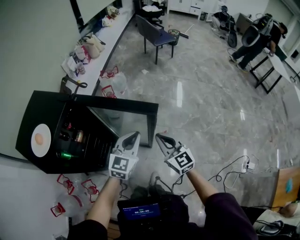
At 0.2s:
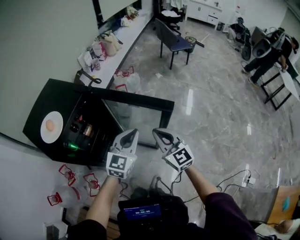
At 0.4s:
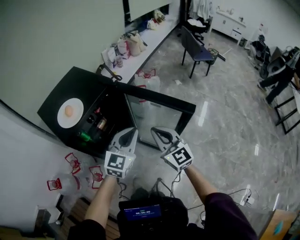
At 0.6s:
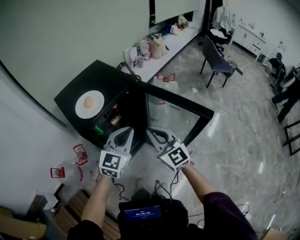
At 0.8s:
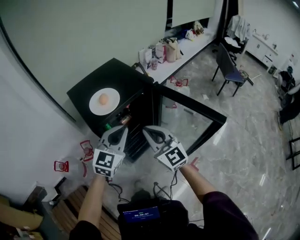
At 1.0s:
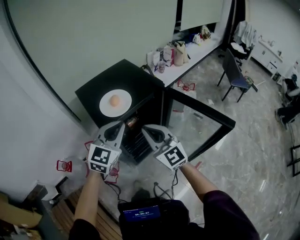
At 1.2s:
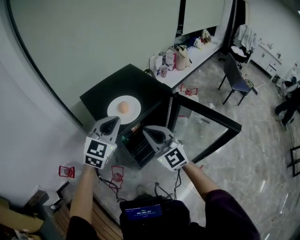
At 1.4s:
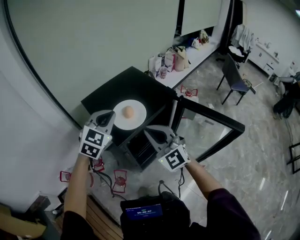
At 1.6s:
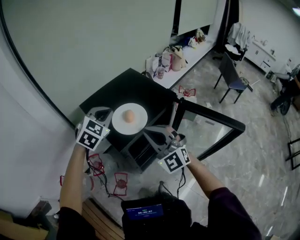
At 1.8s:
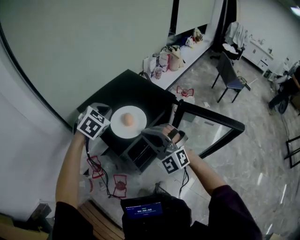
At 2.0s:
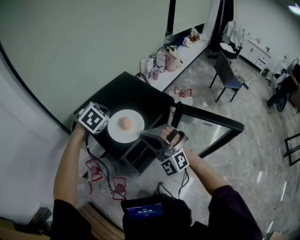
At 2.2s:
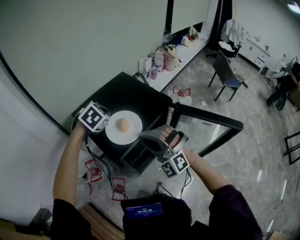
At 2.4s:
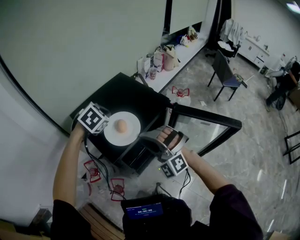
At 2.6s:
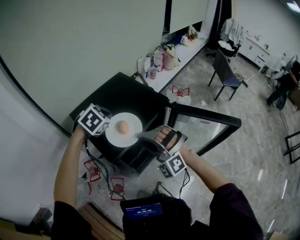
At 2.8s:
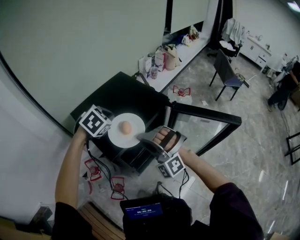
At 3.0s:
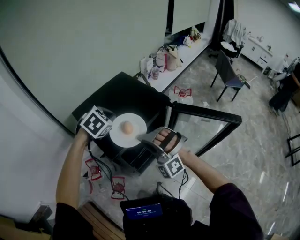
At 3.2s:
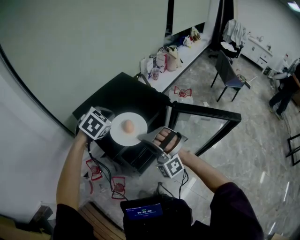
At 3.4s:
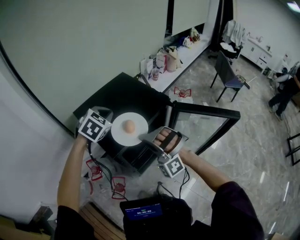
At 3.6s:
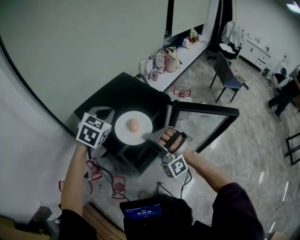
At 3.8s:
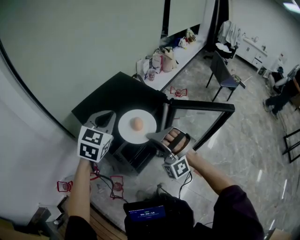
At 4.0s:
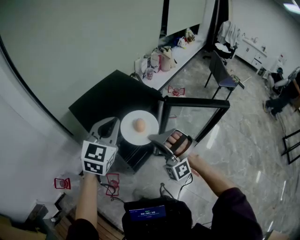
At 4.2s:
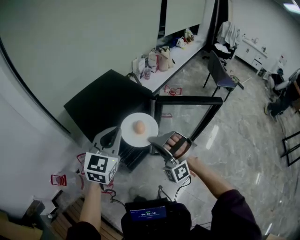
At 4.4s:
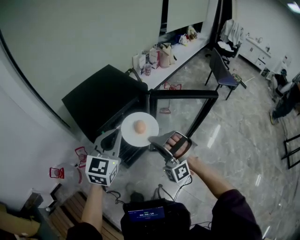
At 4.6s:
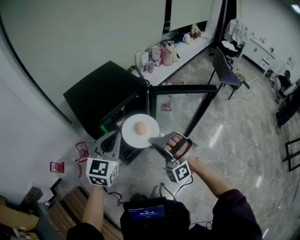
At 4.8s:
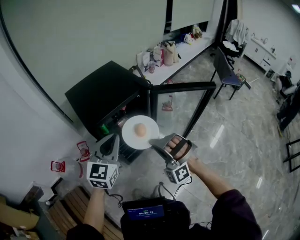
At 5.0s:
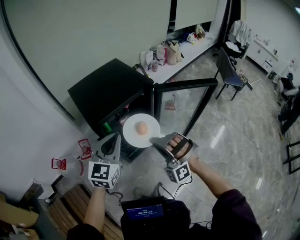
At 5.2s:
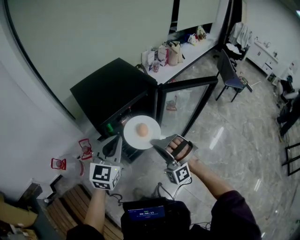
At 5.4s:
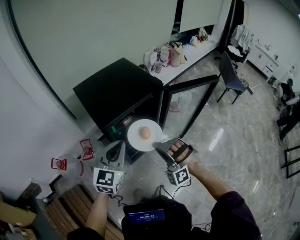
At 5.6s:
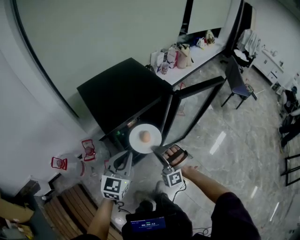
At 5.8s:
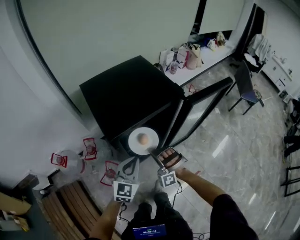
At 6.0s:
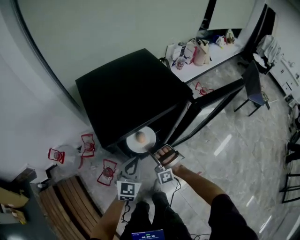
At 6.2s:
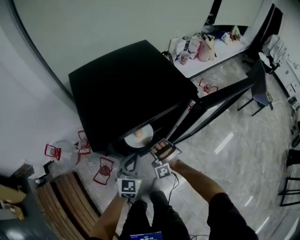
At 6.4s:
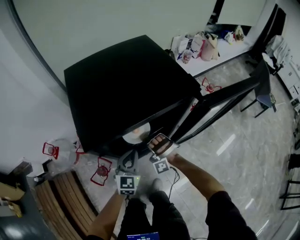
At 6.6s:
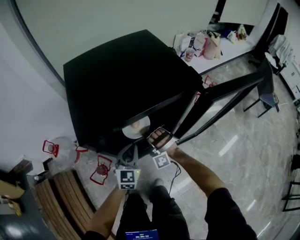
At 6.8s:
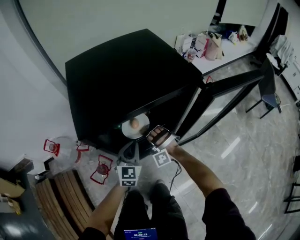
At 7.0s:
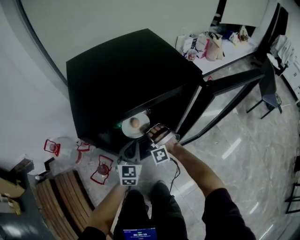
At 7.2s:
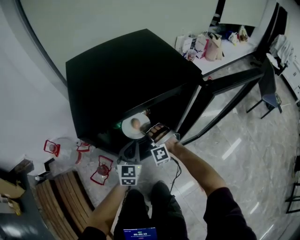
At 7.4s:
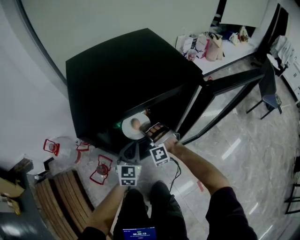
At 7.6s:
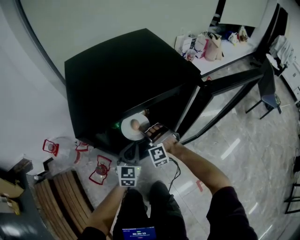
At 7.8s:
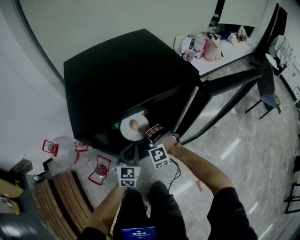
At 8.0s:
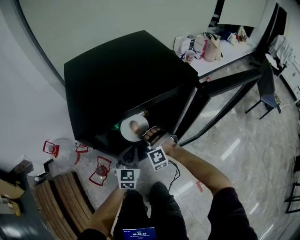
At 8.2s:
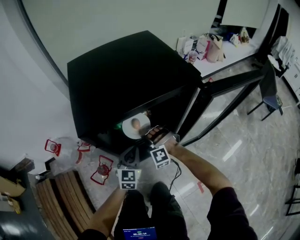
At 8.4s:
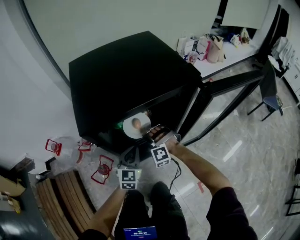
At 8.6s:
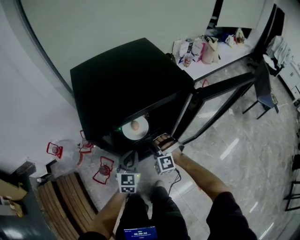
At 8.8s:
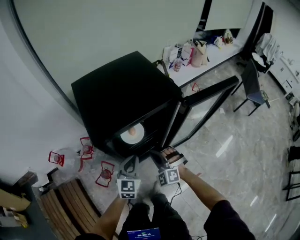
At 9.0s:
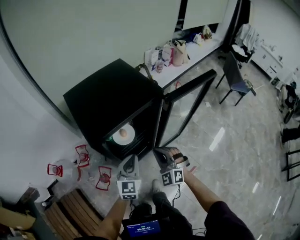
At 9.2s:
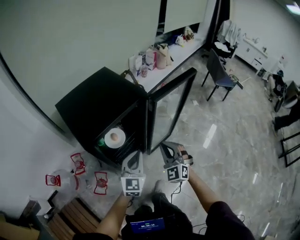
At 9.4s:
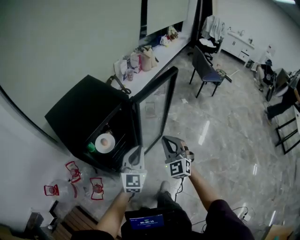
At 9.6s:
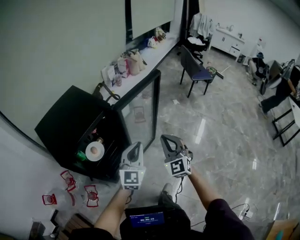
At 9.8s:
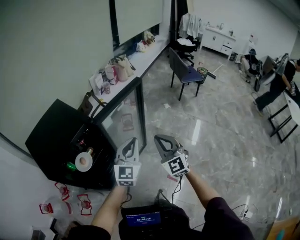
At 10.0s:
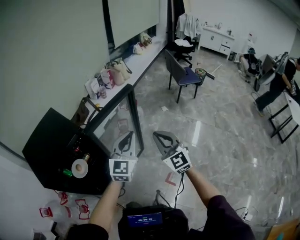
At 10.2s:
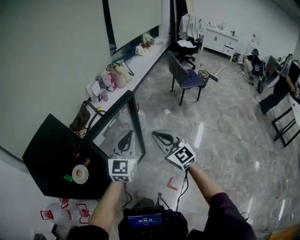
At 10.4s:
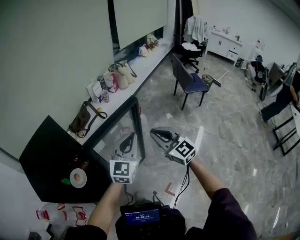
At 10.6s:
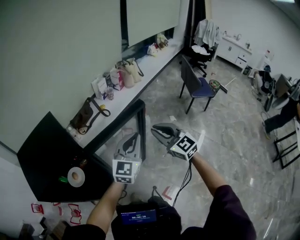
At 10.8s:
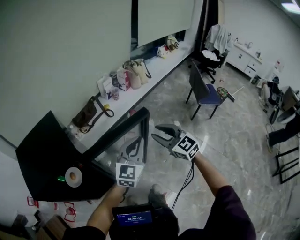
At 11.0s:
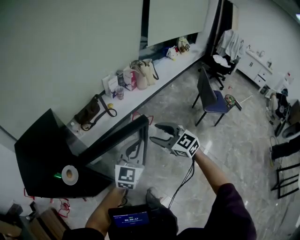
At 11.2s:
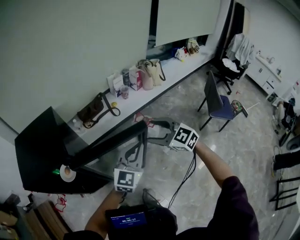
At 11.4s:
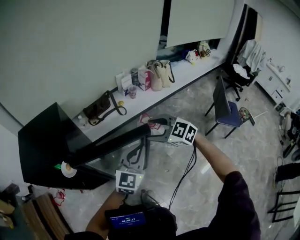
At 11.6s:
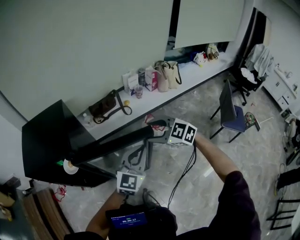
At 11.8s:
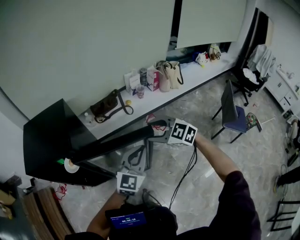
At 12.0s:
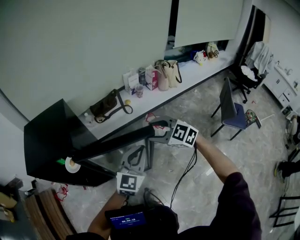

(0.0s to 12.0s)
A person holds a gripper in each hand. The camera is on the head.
0.0s - 1.6s: The two grippers travel together, some 50 cm. The right gripper swivels roughly 60 degrees. The left gripper turns by approximately 40 degrees.
1.6s - 3.0s: The right gripper rolls counterclockwise, seen from behind, by about 40 degrees; the left gripper shifts by roughly 5 cm, and turns by roughly 20 degrees.
3.0s - 4.4s: The right gripper heads to the right and backward, covering about 20 cm, while the left gripper shifts about 25 cm backward and to the right, and tips its fingers upward by about 40 degrees.
4.4s - 6.0s: The left gripper shifts approximately 25 cm downward. The right gripper heads downward, to the left and forward, covering approximately 30 cm.
6.0s - 7.6s: The grippers both shift downward and forward by approximately 15 cm. The right gripper turns by about 20 degrees, and opens.
7.6s - 9.0s: The left gripper travels upward and backward by some 20 cm. Meanwhile the right gripper is displaced upward, backward and to the right by roughly 25 cm, rotates around the line of its fingers by about 50 degrees, clockwise from behind, and closes.
9.0s - 10.4s: The two grippers travel together, to the right and forward, some 40 cm. Both grippers move upward, about 15 cm. The right gripper swivels about 40 degrees. Meanwhile the left gripper turns by approximately 30 degrees.
10.4s - 12.0s: The left gripper moves roughly 15 cm, and rotates some 20 degrees, while the right gripper changes place by about 20 cm, turns by some 50 degrees, and opens its fingers.

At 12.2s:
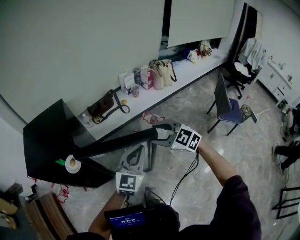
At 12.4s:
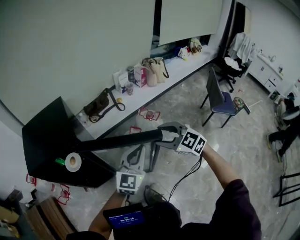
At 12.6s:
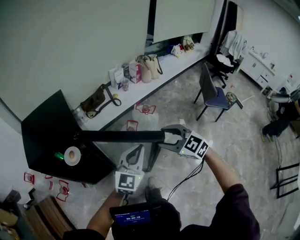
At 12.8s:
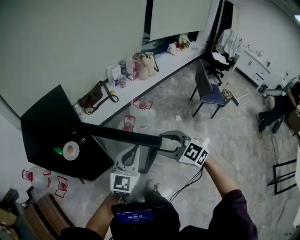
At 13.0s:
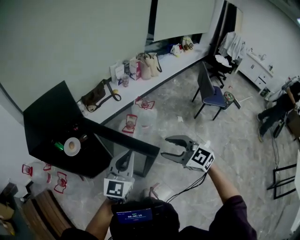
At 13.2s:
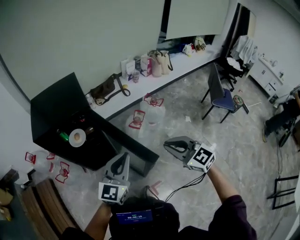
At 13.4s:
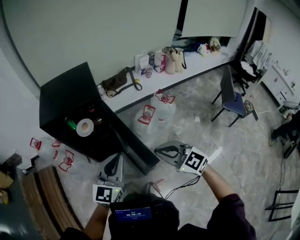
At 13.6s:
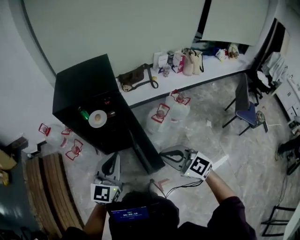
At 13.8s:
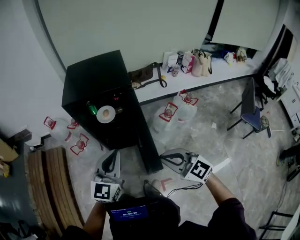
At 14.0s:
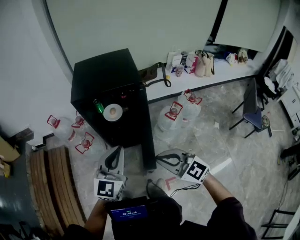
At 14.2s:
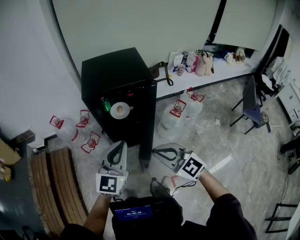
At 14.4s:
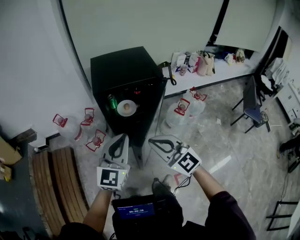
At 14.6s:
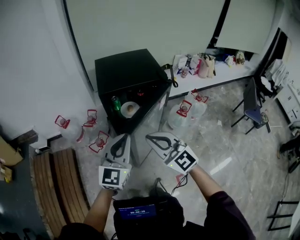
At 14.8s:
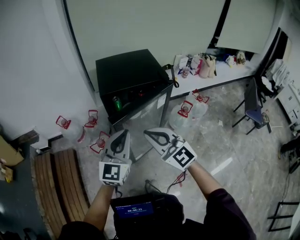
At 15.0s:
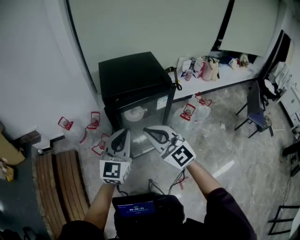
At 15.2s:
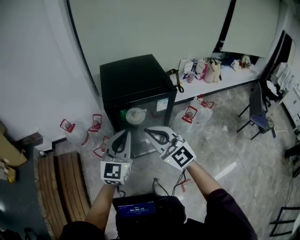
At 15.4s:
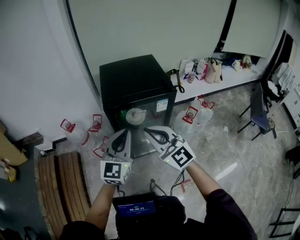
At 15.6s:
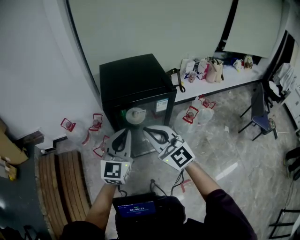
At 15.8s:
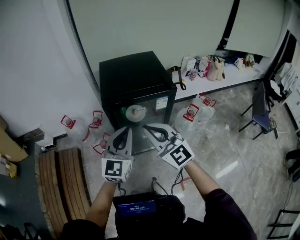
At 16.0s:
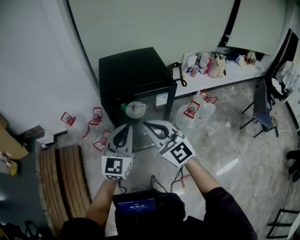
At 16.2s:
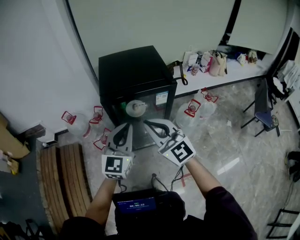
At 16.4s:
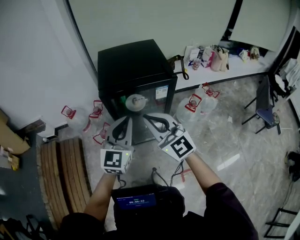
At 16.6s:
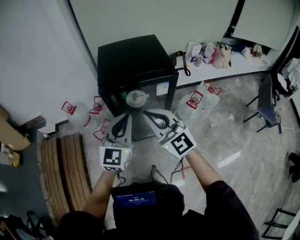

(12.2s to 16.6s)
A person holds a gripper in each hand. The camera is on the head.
12.2s - 13.6s: The right gripper changes place by approximately 35 cm, and closes. Meanwhile the left gripper changes place by some 35 cm.
13.6s - 15.2s: The grippers both shift to the left and forward by about 25 cm. The right gripper turns by about 20 degrees.
15.2s - 16.6s: There are only small adjustments of the grippers.

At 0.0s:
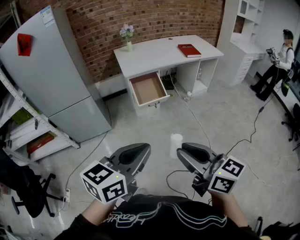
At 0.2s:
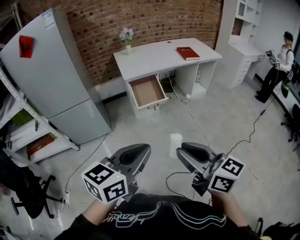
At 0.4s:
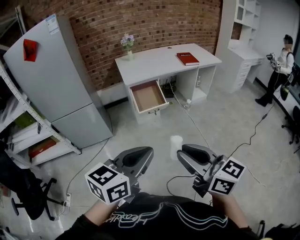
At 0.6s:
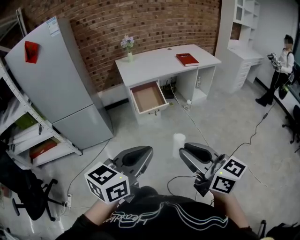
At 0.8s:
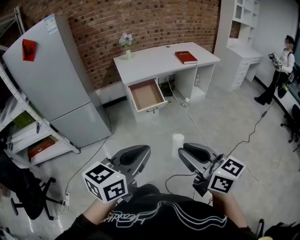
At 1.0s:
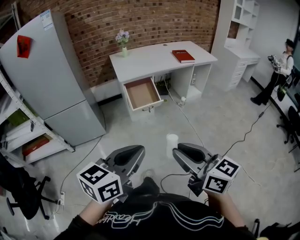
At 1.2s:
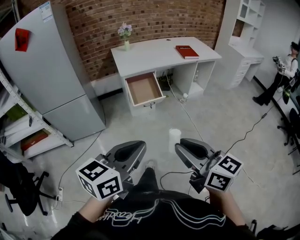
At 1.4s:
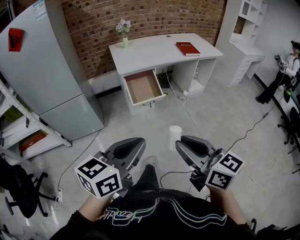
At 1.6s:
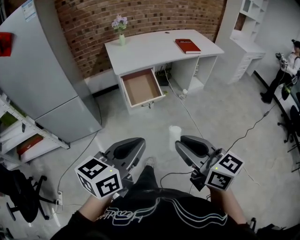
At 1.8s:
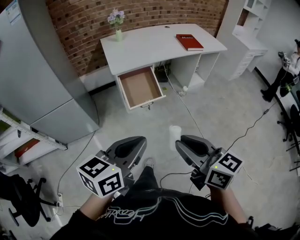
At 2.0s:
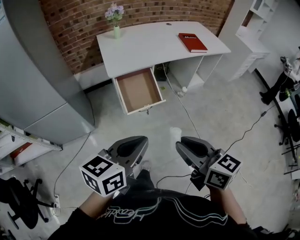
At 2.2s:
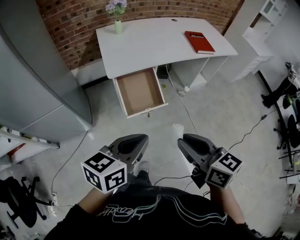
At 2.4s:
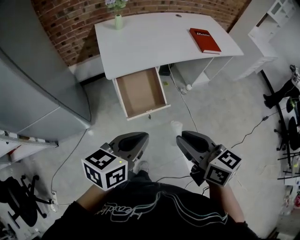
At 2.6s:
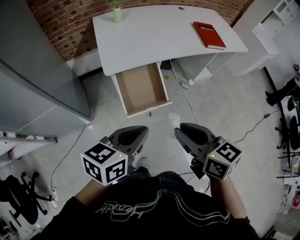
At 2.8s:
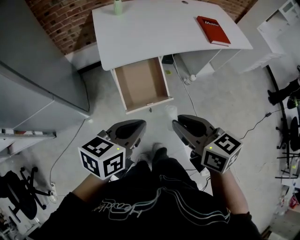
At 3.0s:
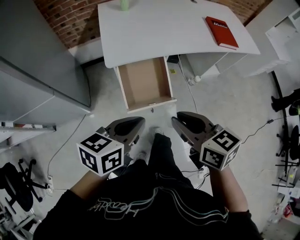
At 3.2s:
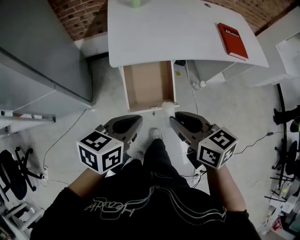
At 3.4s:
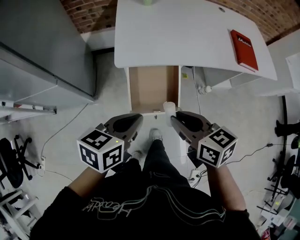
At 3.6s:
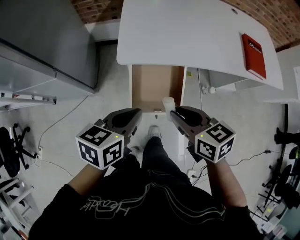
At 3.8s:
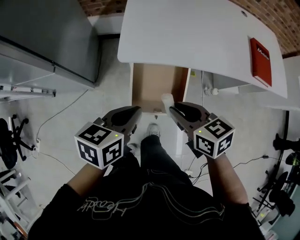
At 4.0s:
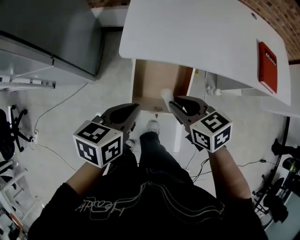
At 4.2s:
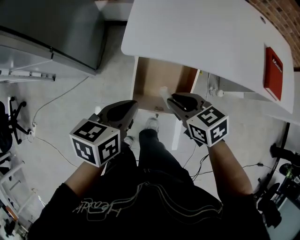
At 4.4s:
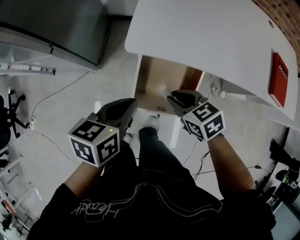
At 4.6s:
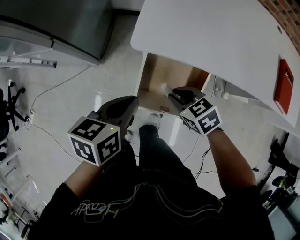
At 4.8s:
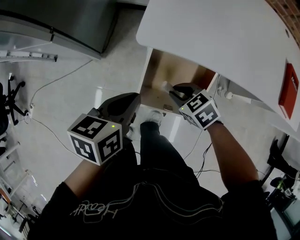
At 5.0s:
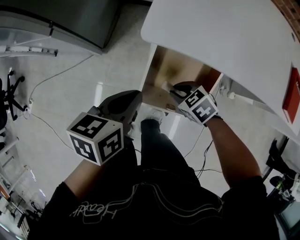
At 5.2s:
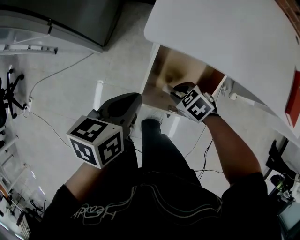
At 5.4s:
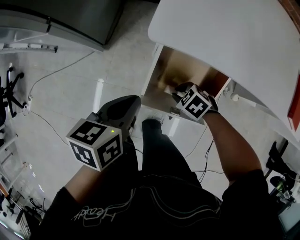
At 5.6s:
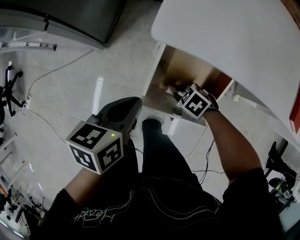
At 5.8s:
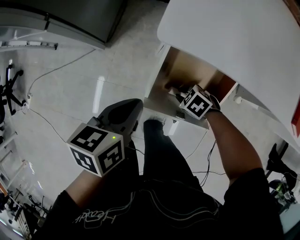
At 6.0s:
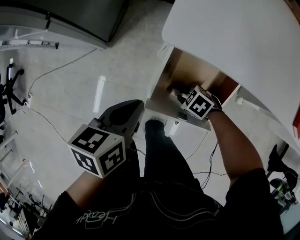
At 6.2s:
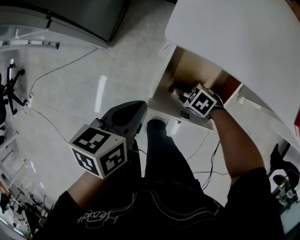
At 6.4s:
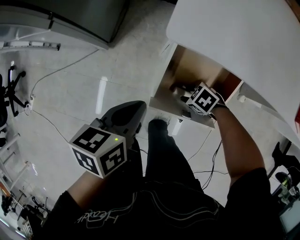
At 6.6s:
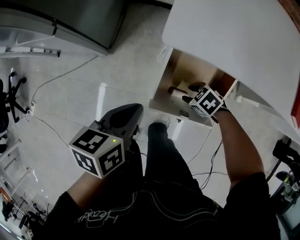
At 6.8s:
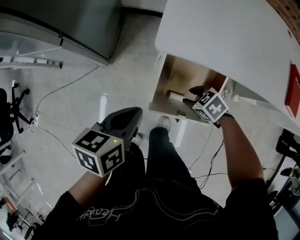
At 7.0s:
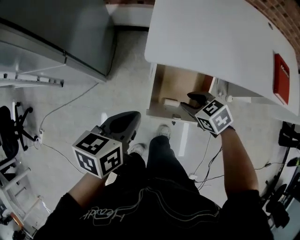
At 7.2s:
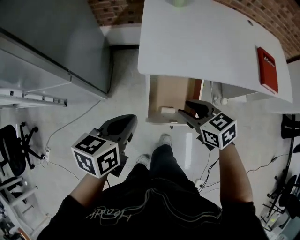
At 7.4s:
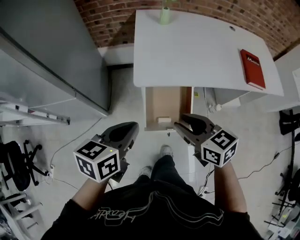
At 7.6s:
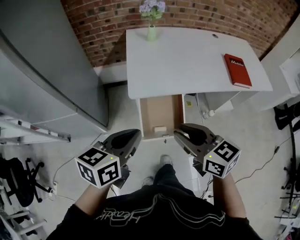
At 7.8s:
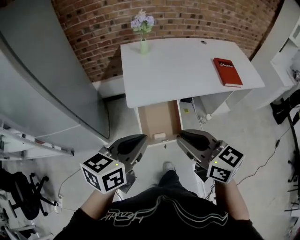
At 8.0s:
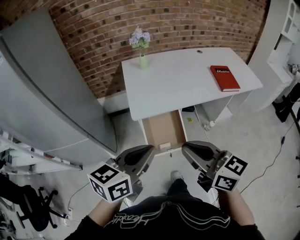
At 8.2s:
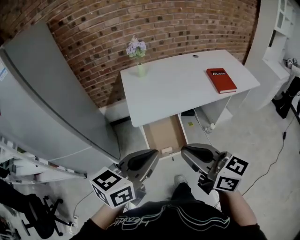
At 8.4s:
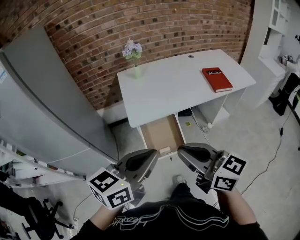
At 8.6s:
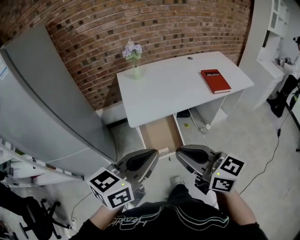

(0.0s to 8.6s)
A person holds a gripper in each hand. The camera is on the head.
0.0s - 1.4s: The grippers both shift forward by approximately 5 cm.
1.4s - 2.8s: The pair of grippers is taken forward, some 50 cm. The right gripper rotates approximately 20 degrees.
2.8s - 4.4s: The right gripper moves downward, about 25 cm, and changes its angle by roughly 50 degrees. Meanwhile the left gripper shifts by about 25 cm, and rotates roughly 40 degrees.
4.4s - 5.8s: The right gripper heads downward, covering about 25 cm, and swivels some 40 degrees, while the left gripper goes about 10 cm downward.
5.8s - 7.2s: The right gripper goes about 35 cm upward, and points its fingers some 30 degrees further upward. The left gripper travels upward by roughly 20 cm, and rotates some 20 degrees.
7.2s - 8.6s: The right gripper moves upward and backward, about 40 cm, tilts its fingers approximately 40 degrees upward, and closes its fingers. Meanwhile the left gripper is displaced upward, backward and to the right by about 35 cm, and changes its angle by about 40 degrees.
